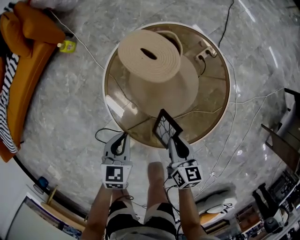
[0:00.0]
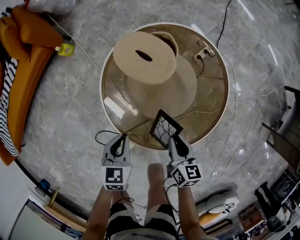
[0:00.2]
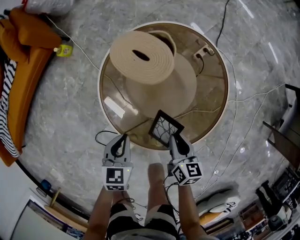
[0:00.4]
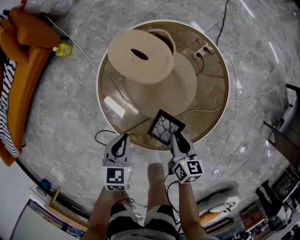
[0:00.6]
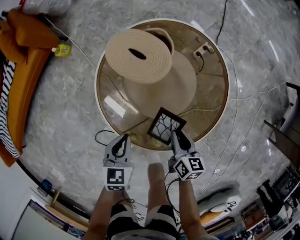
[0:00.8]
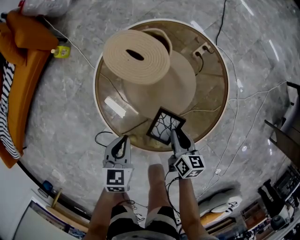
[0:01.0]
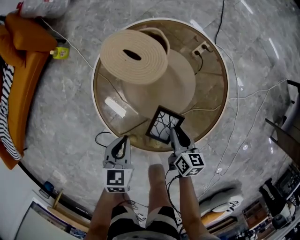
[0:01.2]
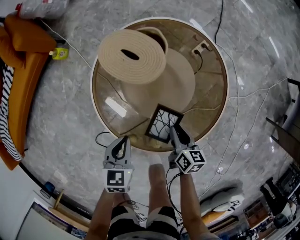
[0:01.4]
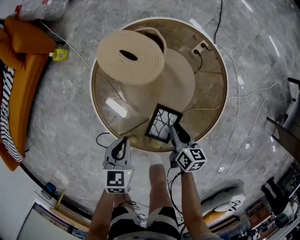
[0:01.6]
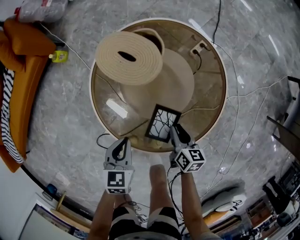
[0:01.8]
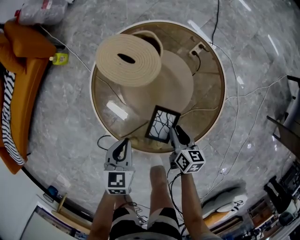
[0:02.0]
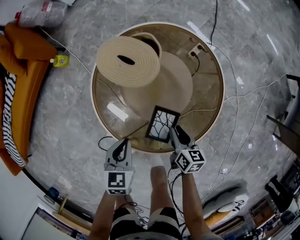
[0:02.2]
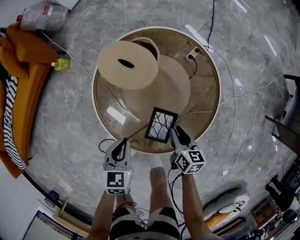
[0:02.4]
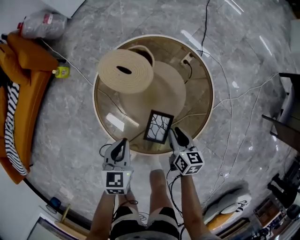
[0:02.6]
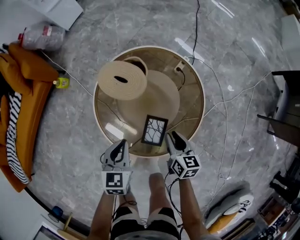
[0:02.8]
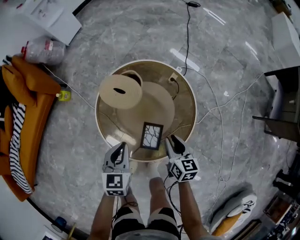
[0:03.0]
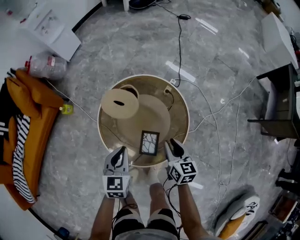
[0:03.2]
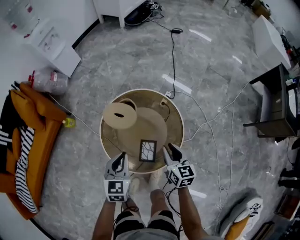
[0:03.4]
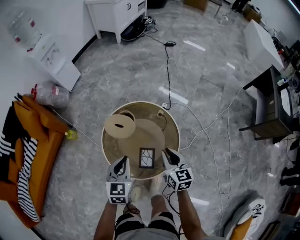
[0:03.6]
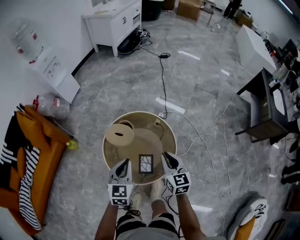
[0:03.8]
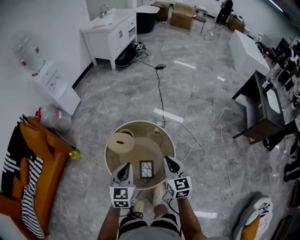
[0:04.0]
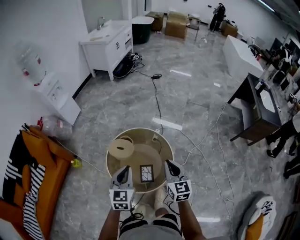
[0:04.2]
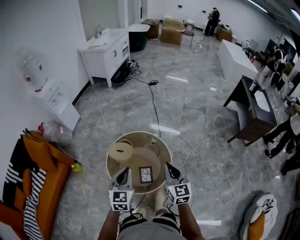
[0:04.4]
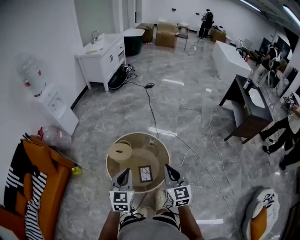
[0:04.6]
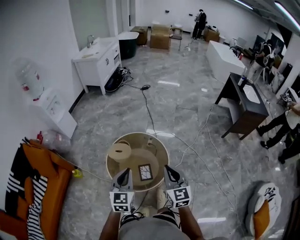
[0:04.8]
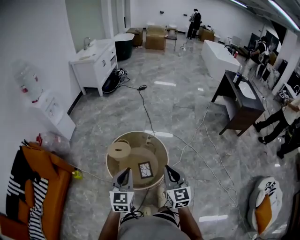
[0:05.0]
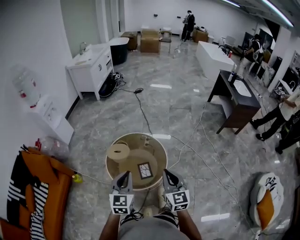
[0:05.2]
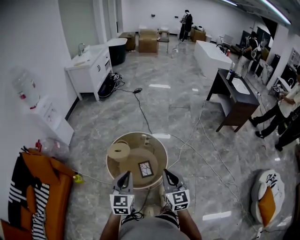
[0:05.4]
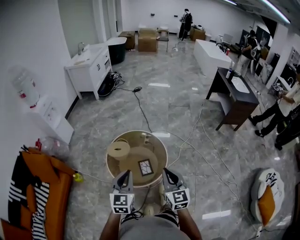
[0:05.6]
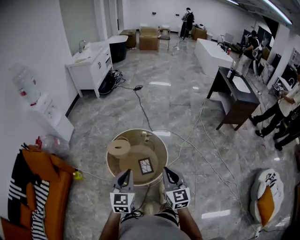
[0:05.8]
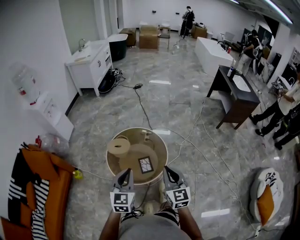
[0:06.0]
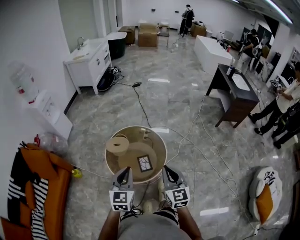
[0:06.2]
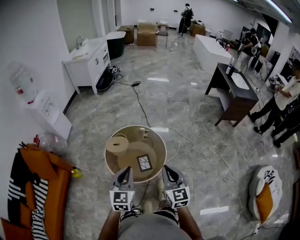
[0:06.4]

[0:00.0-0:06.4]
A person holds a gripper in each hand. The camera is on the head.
0:00.0 to 0:01.6: The left gripper shifts by roughly 5 cm; the right gripper goes roughly 10 cm downward and to the right.
0:01.6 to 0:03.2: The two grippers go approximately 25 cm upward. The right gripper rotates some 20 degrees.
0:03.2 to 0:04.8: The grippers both shift upward and backward by about 40 cm. The left gripper rotates approximately 30 degrees. Meanwhile the right gripper swivels some 40 degrees, and closes its fingers.
0:04.8 to 0:06.4: The grippers both shift backward by about 10 cm.

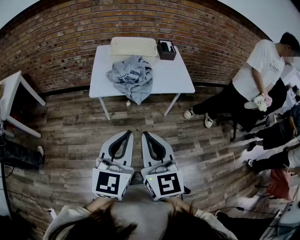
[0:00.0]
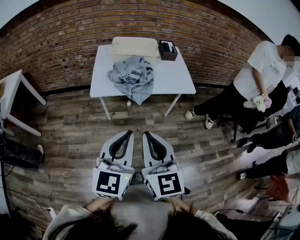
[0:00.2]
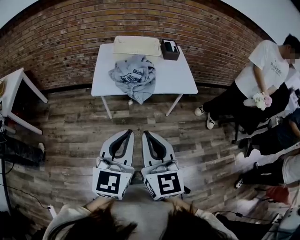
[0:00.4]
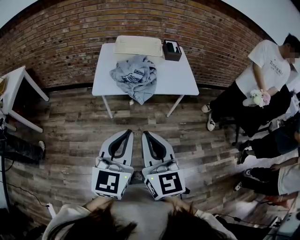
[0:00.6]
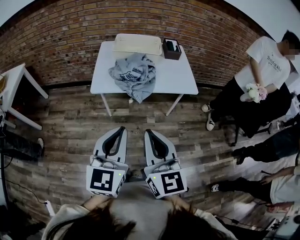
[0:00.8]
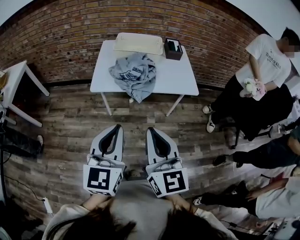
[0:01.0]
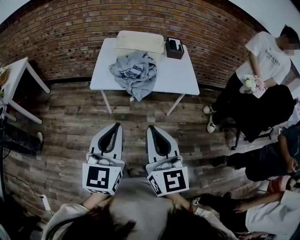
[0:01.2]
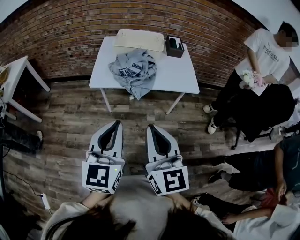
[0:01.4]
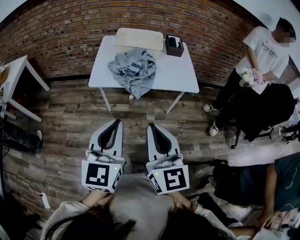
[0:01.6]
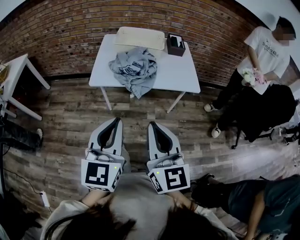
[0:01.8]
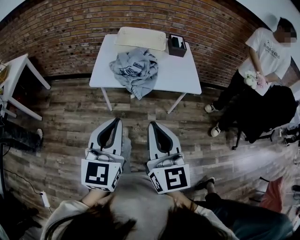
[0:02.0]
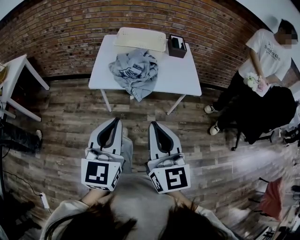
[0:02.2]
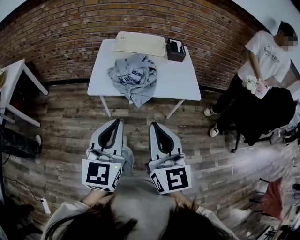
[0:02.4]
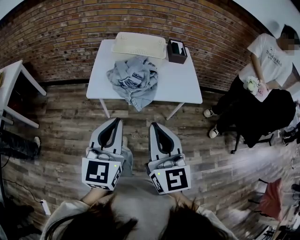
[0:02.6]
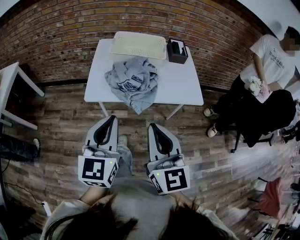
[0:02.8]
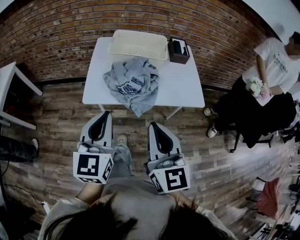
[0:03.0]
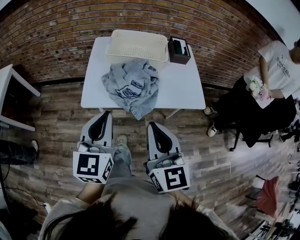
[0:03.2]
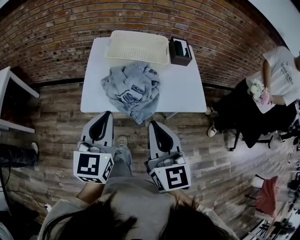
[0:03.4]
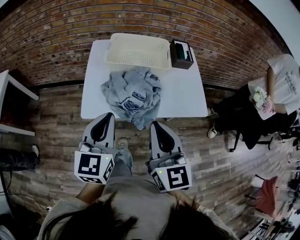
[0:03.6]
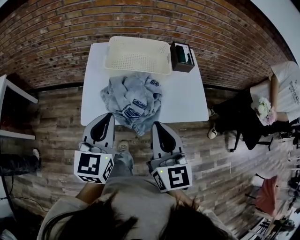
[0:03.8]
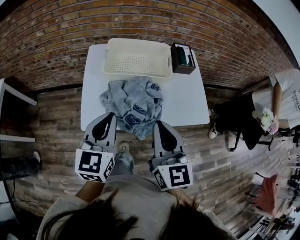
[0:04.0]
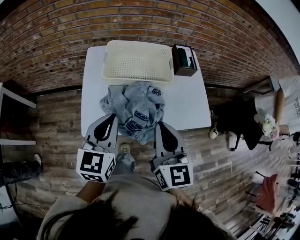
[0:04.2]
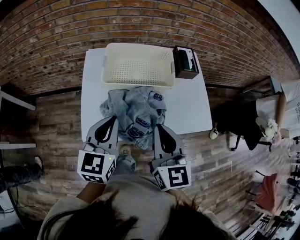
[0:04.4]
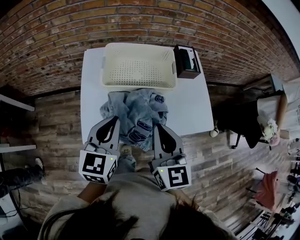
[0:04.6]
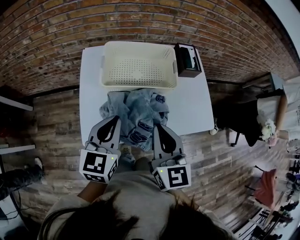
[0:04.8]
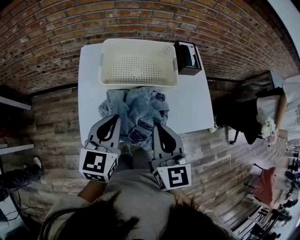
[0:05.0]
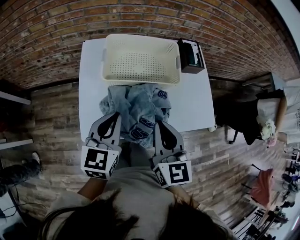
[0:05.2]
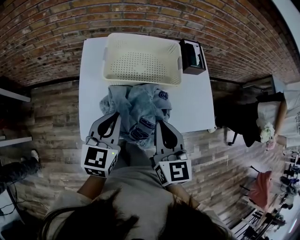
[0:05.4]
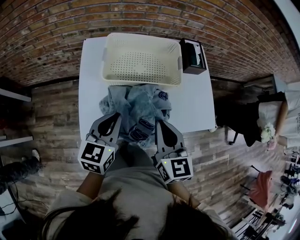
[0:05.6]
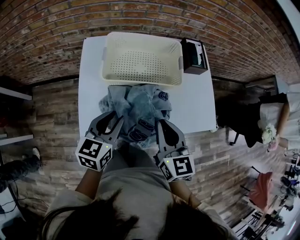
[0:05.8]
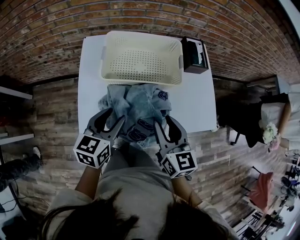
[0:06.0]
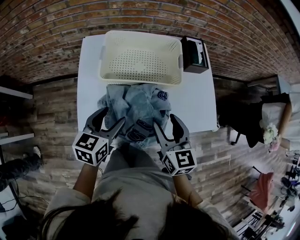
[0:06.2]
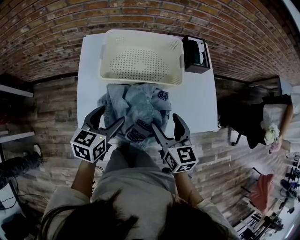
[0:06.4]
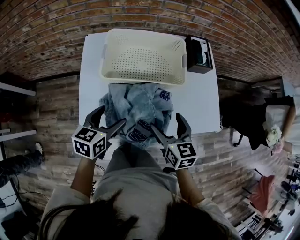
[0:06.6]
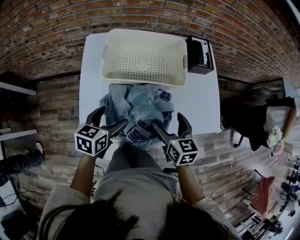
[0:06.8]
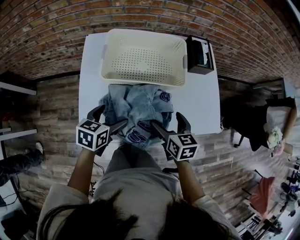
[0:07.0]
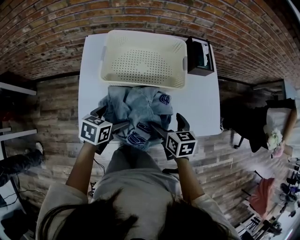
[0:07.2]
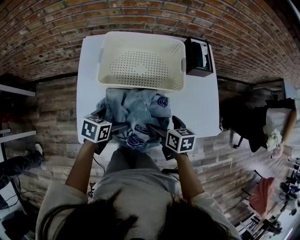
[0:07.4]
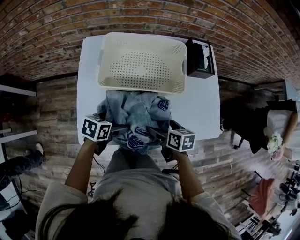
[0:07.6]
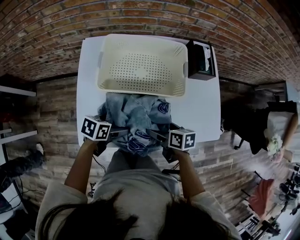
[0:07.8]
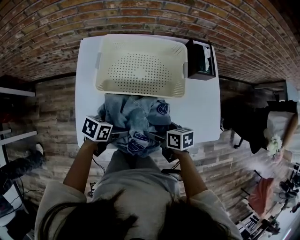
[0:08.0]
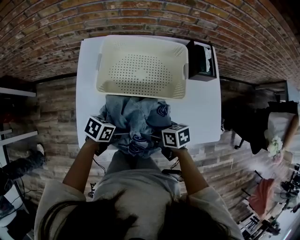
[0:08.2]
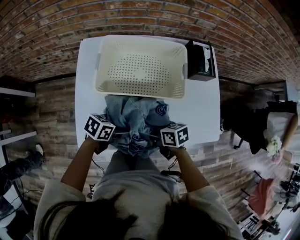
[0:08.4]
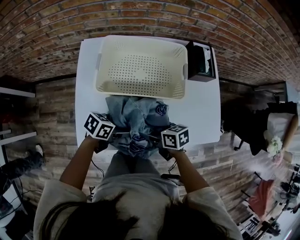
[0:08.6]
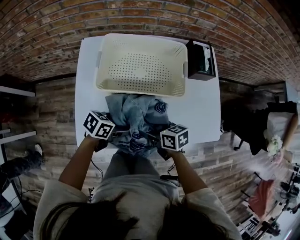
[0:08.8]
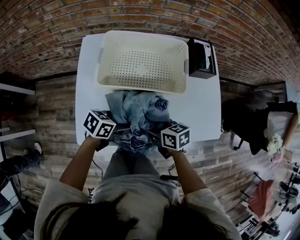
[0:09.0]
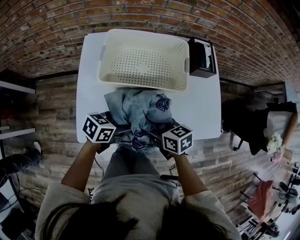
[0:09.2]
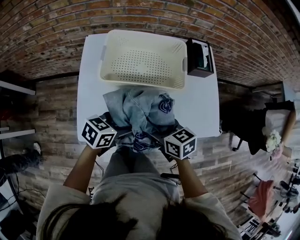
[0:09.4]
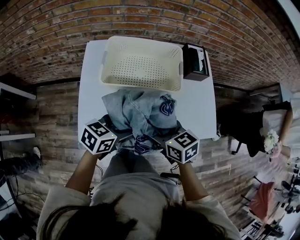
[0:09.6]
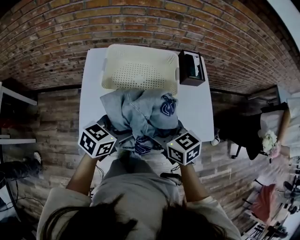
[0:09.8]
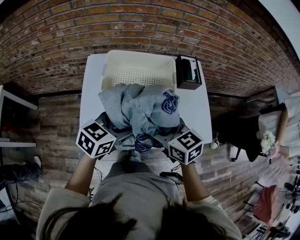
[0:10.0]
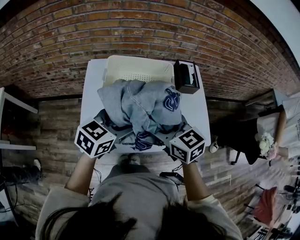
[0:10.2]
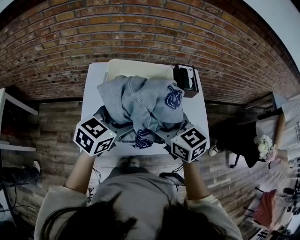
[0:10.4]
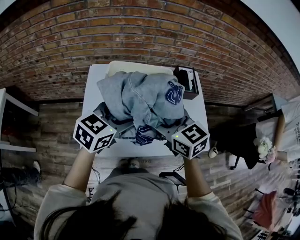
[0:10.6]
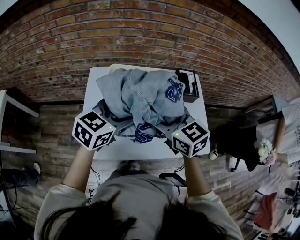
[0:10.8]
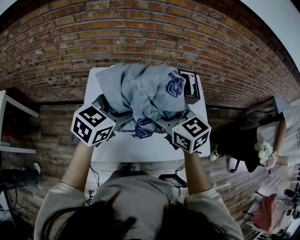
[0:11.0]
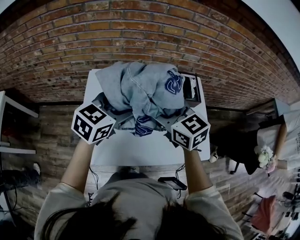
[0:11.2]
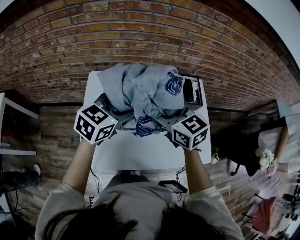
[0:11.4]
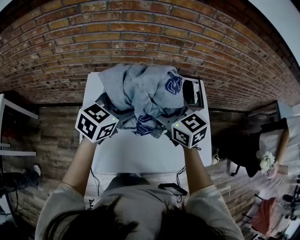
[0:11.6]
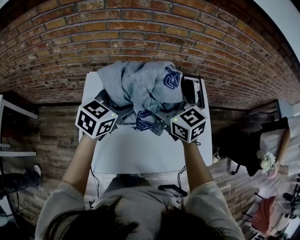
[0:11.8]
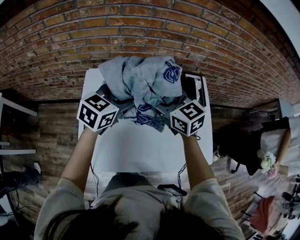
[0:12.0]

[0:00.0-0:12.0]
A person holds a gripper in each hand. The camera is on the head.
0:00.0 to 0:01.6: The right gripper travels to the right by roughly 5 cm.
0:01.6 to 0:03.0: The grippers both shift forward by approximately 15 cm.
0:03.0 to 0:04.4: Both grippers travel together forward, some 25 cm.
0:04.4 to 0:06.0: The right gripper shifts some 10 cm downward and forward, while the left gripper is displaced downward by approximately 10 cm.
0:06.0 to 0:07.6: The grippers both shift downward by roughly 15 cm. The left gripper turns by about 40 degrees, and opens up. Meanwhile the right gripper rotates some 40 degrees, and opens.
0:07.6 to 0:09.0: The left gripper changes place by roughly 5 cm, and closes. Meanwhile the right gripper ends up approximately 5 cm from where it was, and closes up.
0:09.0 to 0:10.4: Both grippers move upward, roughly 25 cm. The right gripper rotates roughly 40 degrees. The left gripper rotates roughly 40 degrees.
0:10.4 to 0:12.0: Both grippers travel together forward, about 20 cm.

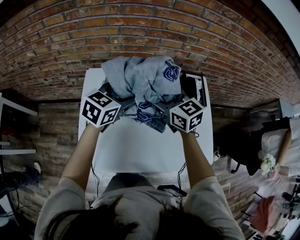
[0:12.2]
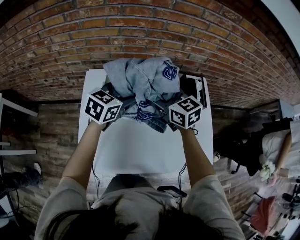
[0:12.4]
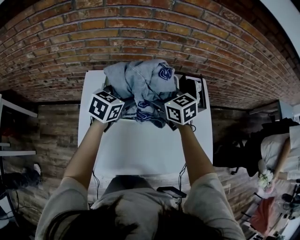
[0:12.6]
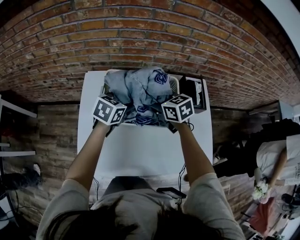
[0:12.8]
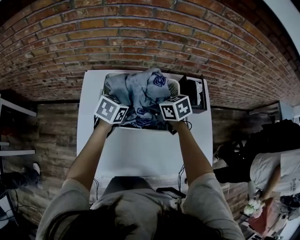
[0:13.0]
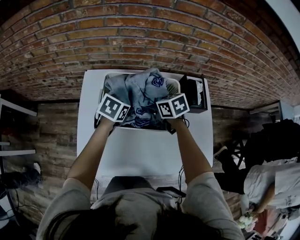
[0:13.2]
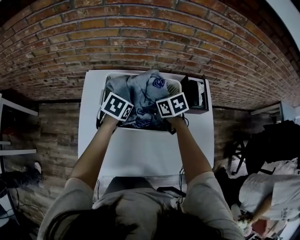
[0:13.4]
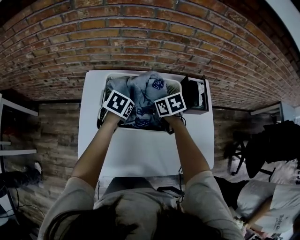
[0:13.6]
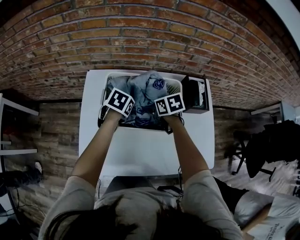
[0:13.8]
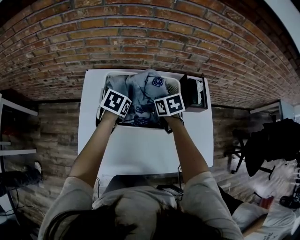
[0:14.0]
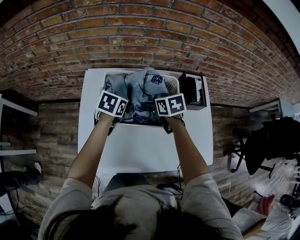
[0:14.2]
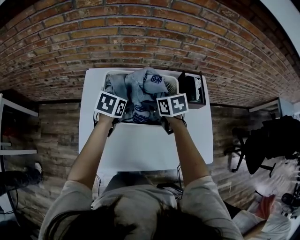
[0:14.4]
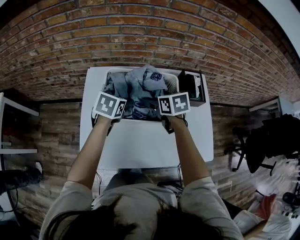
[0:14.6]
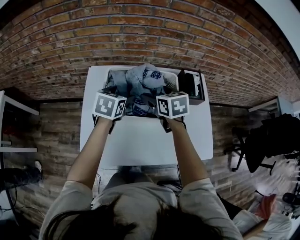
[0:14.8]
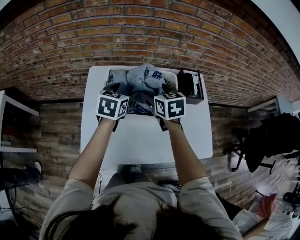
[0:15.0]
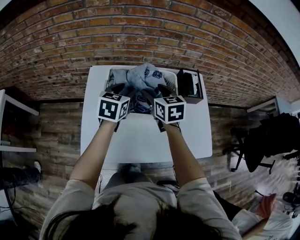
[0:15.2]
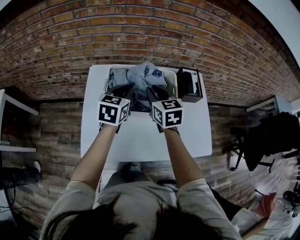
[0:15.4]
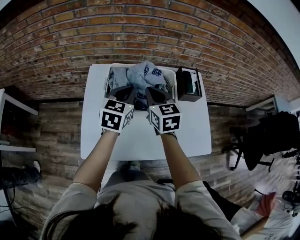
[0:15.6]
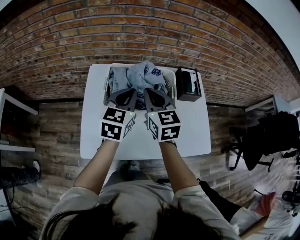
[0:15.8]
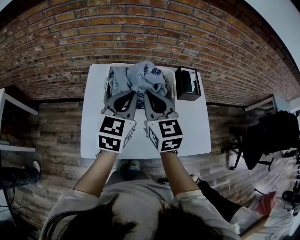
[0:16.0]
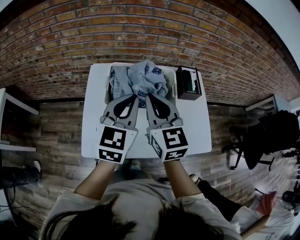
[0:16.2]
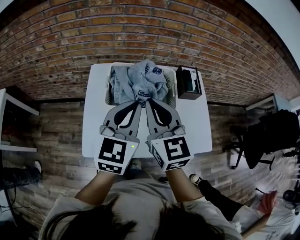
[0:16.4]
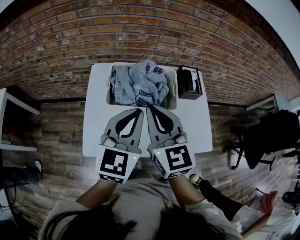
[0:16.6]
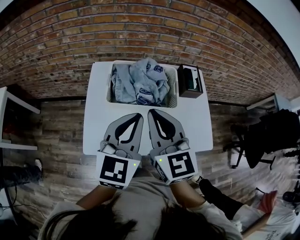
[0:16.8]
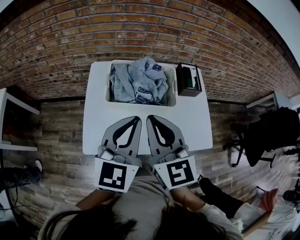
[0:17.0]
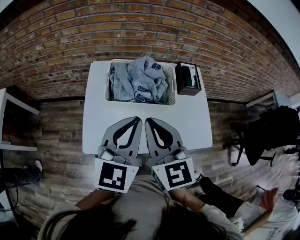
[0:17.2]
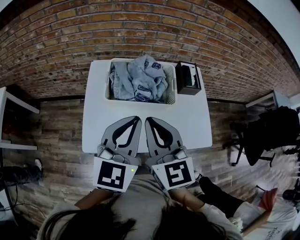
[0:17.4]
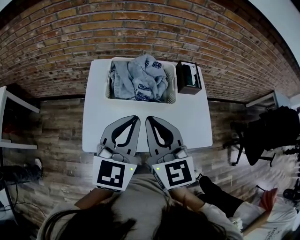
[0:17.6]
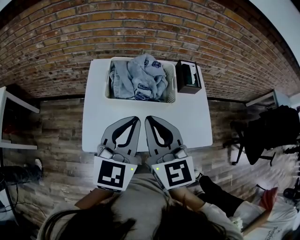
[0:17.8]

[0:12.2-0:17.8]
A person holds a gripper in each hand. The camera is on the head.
0:12.2 to 0:13.6: Both grippers travel together downward, about 15 cm. The right gripper points its fingers some 30 degrees further downward, while the left gripper points its fingers roughly 30 degrees further downward.
0:13.6 to 0:15.0: The grippers both shift upward by some 10 cm. The right gripper turns by some 30 degrees. The left gripper swivels about 30 degrees.
0:15.0 to 0:16.4: The two grippers go roughly 20 cm backward and upward. The left gripper changes its angle by approximately 30 degrees, and closes its fingers. The right gripper rotates roughly 30 degrees, and closes.
0:16.4 to 0:17.8: Both grippers travel together backward, approximately 10 cm.
